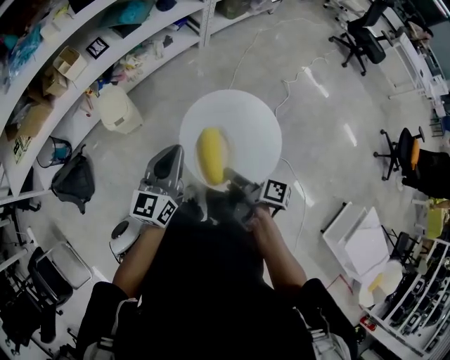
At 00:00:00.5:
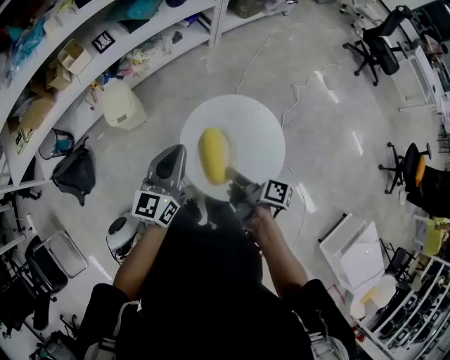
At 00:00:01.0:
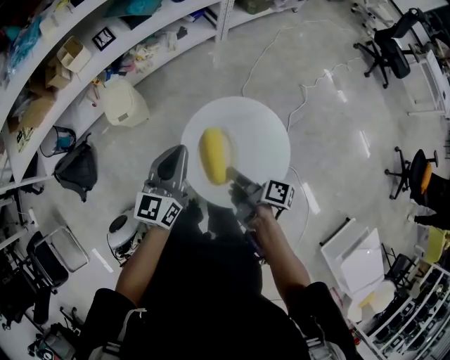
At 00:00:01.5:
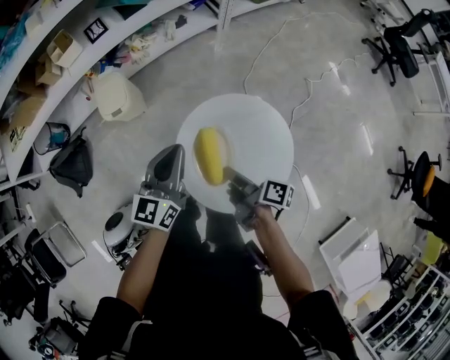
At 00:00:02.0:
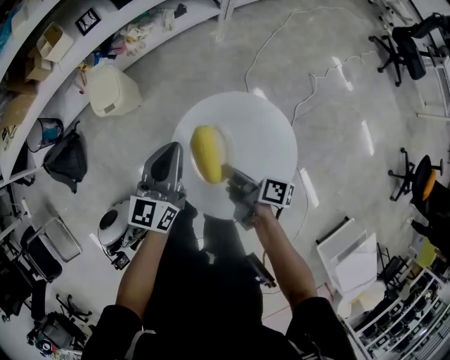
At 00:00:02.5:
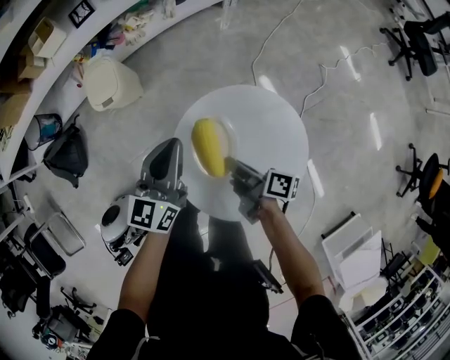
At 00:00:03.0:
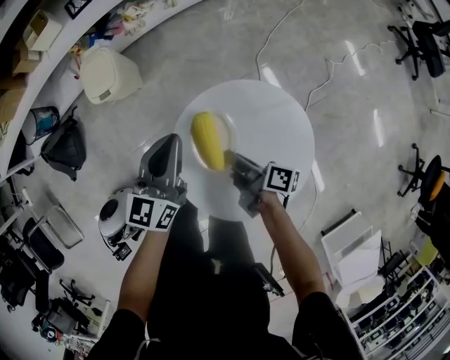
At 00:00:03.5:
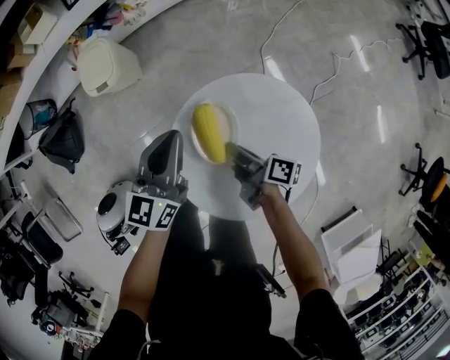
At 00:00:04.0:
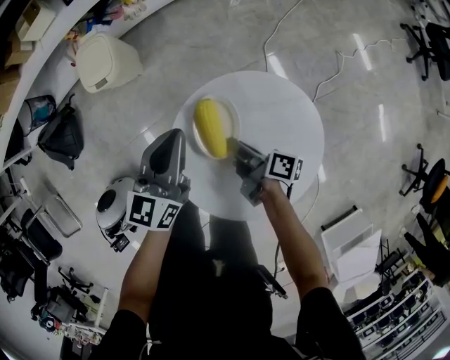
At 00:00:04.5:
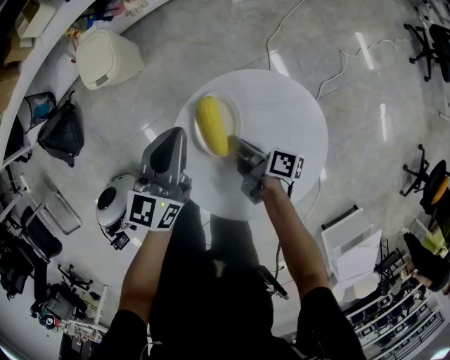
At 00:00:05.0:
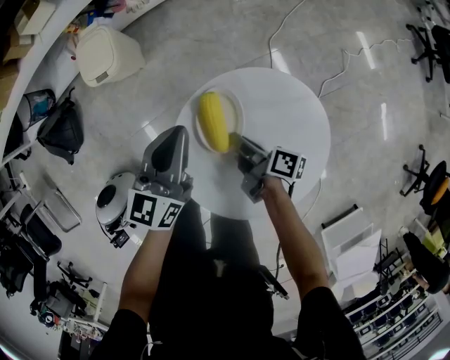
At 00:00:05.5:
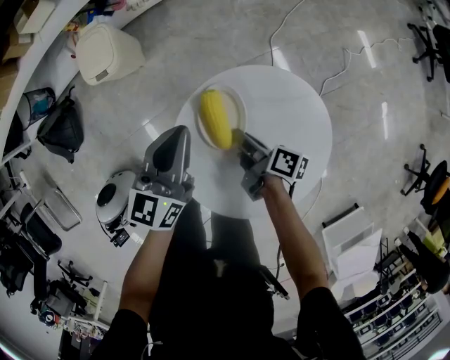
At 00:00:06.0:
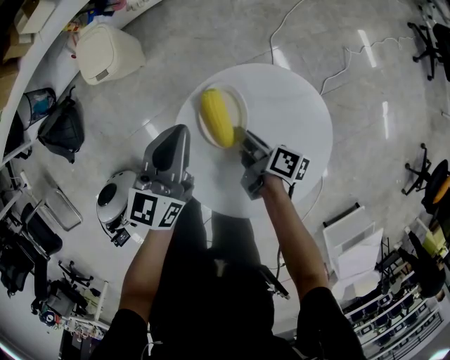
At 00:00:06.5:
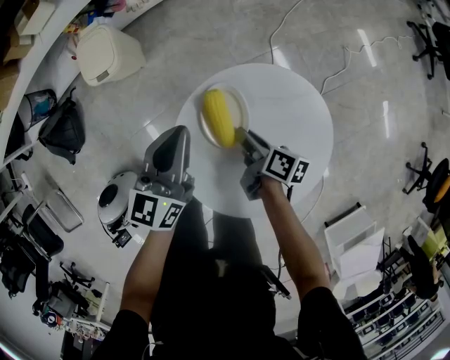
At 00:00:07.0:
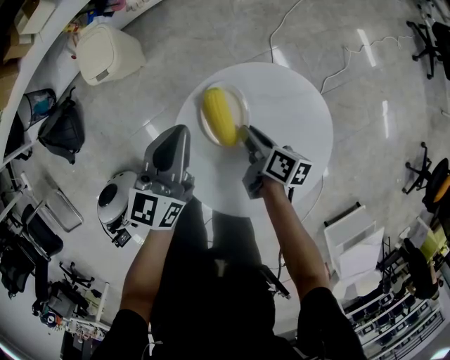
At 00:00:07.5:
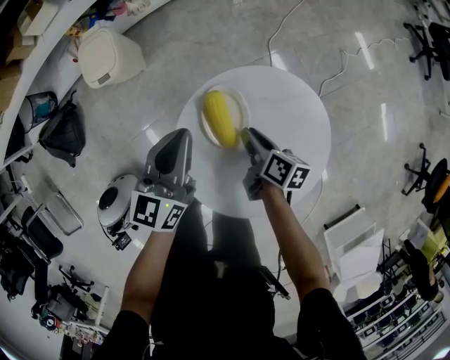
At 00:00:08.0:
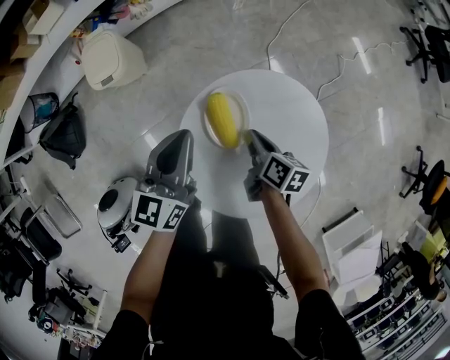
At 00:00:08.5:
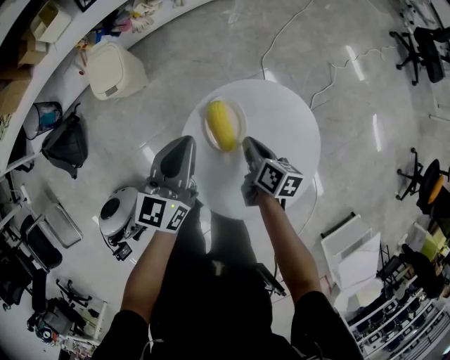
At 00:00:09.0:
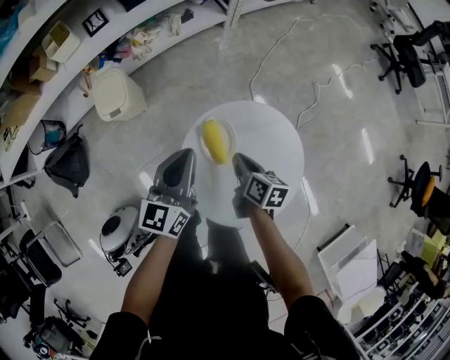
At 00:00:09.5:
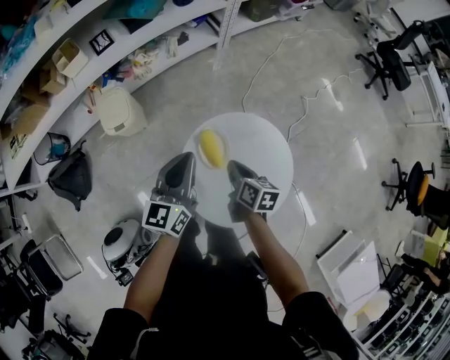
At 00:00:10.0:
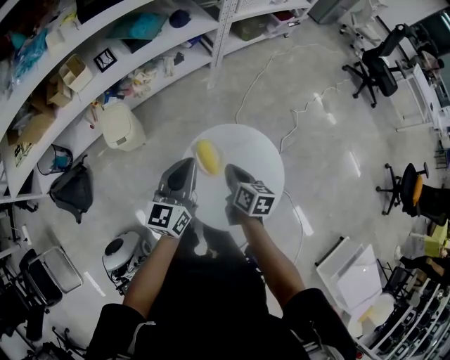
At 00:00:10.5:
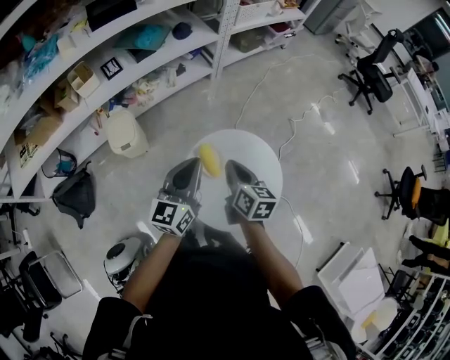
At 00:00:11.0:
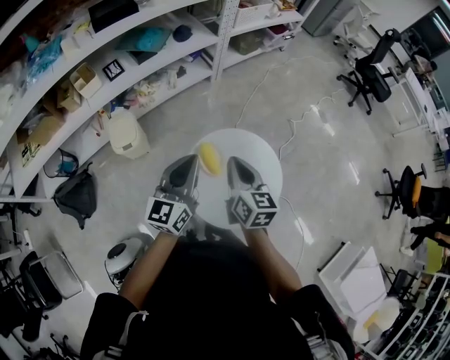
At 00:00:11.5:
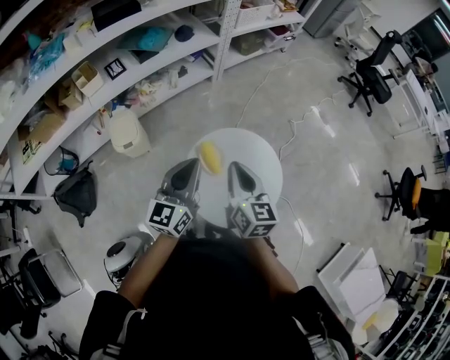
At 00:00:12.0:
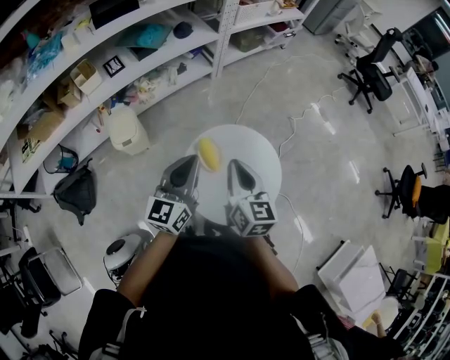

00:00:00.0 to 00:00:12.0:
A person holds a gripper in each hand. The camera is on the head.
00:00:00.0 to 00:00:02.0: The left gripper moves some 20 cm.
00:00:02.0 to 00:00:04.0: The left gripper travels downward by some 10 cm.
00:00:08.0 to 00:00:10.0: The left gripper goes roughly 15 cm upward.
00:00:10.0 to 00:00:12.0: The left gripper goes some 5 cm upward.

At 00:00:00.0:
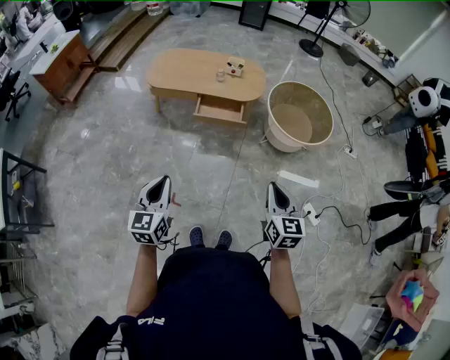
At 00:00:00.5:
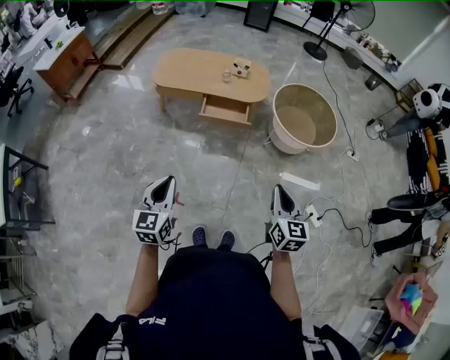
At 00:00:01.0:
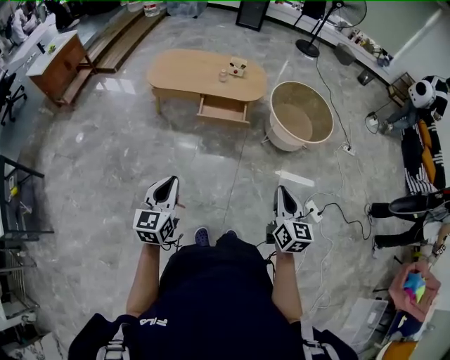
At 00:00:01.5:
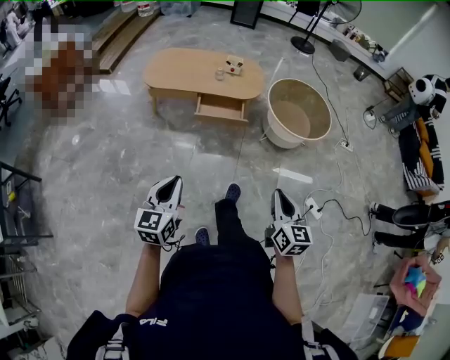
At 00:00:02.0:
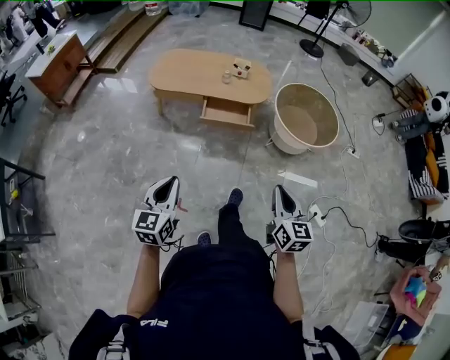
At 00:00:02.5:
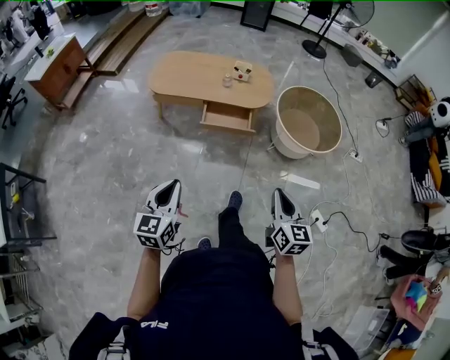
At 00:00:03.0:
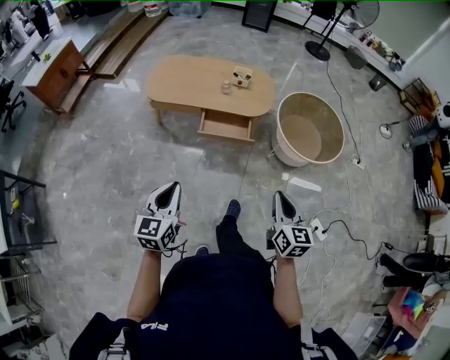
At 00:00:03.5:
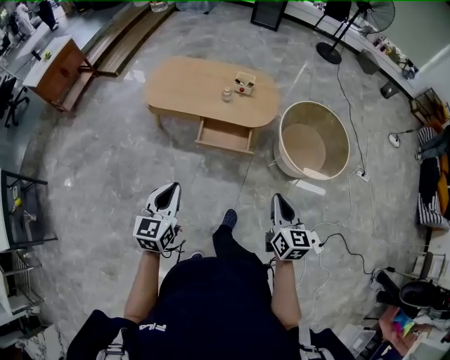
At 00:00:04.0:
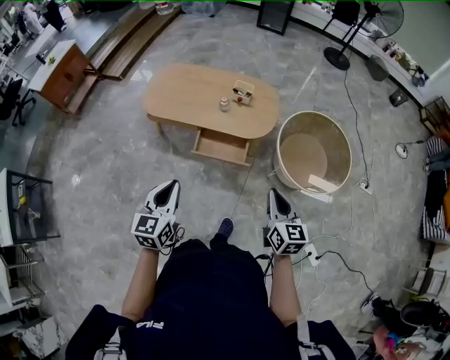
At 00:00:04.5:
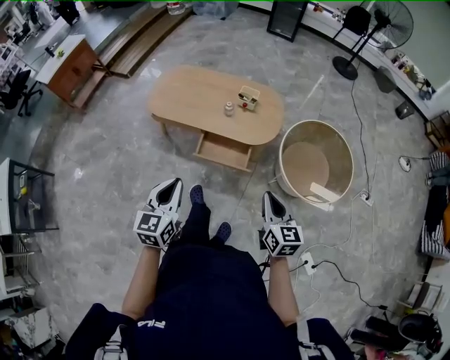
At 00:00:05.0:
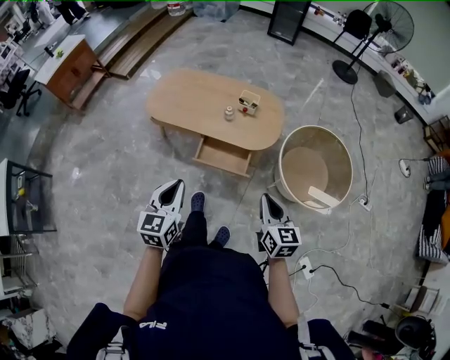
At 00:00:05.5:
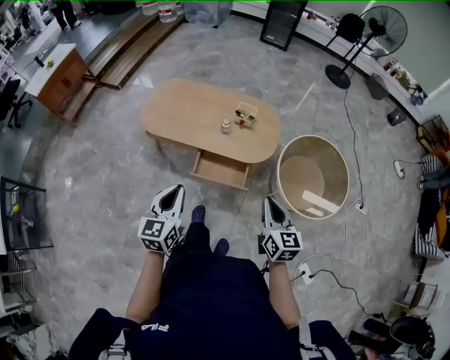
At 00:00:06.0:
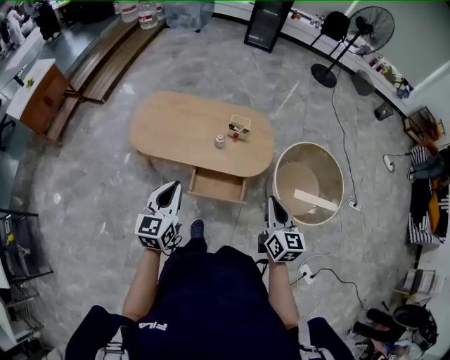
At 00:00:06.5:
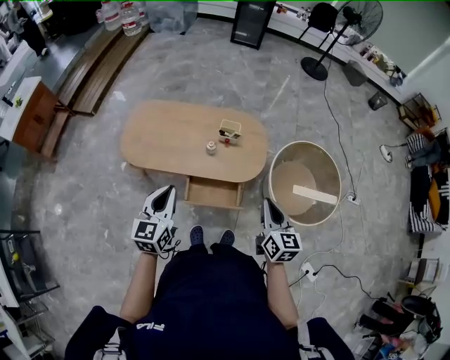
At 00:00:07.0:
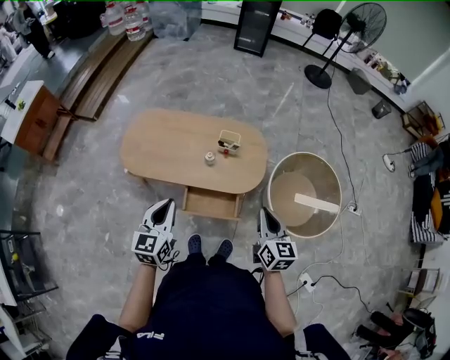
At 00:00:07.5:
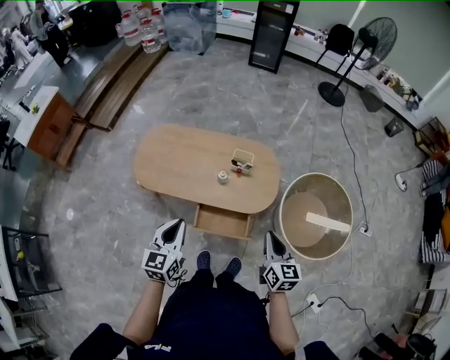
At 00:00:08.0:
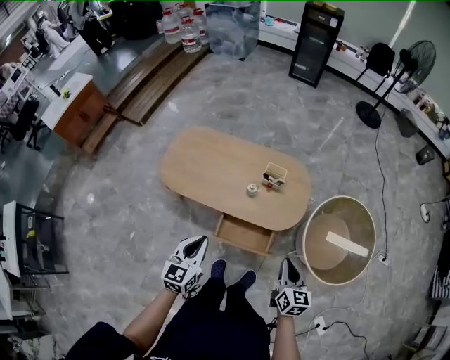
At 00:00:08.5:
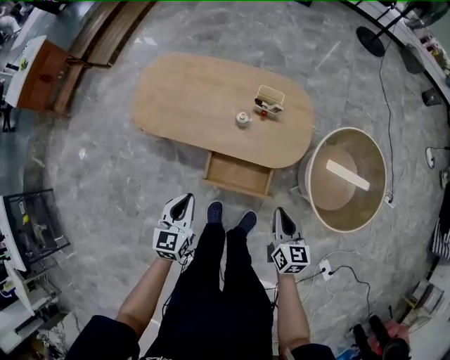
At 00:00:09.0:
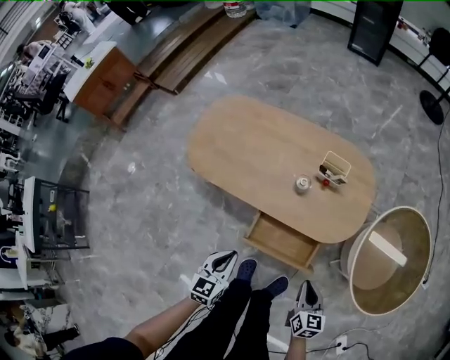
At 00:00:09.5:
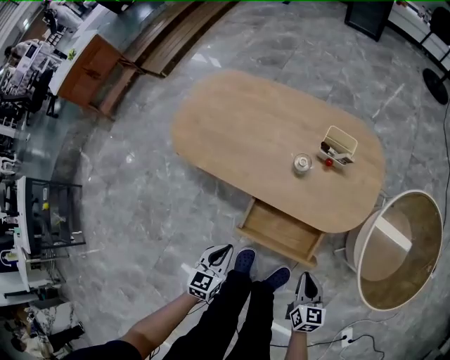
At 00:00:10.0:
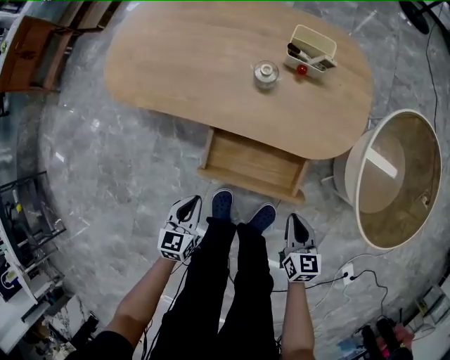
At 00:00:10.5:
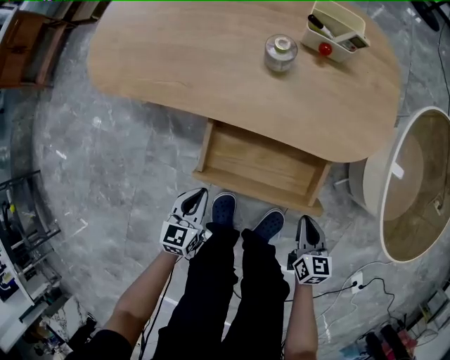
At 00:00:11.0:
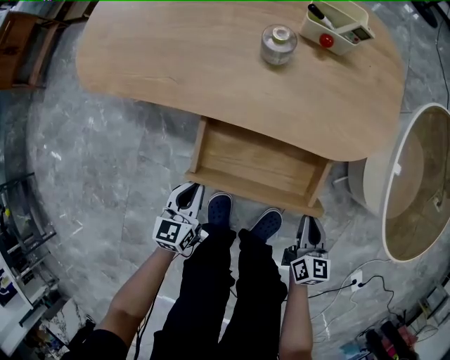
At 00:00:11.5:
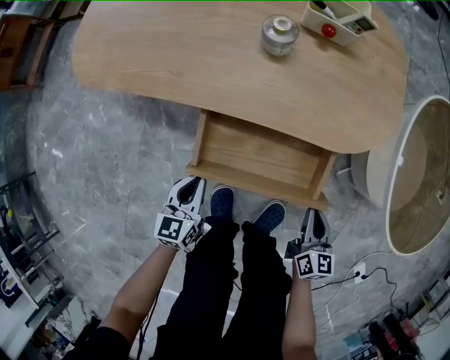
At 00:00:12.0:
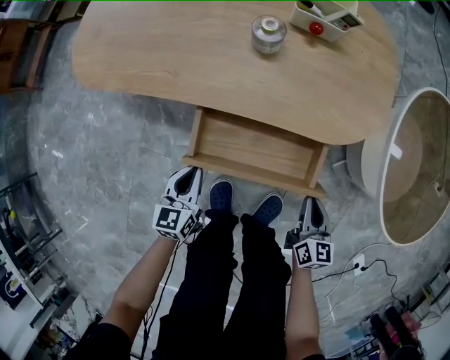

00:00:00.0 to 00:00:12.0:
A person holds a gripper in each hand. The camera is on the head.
00:00:00.0 to 00:00:02.0: The grippers both shift to the left by roughly 5 cm.
00:00:02.0 to 00:00:04.0: The right gripper heads forward, covering about 35 cm. Meanwhile the left gripper shifts approximately 35 cm forward and to the right.
00:00:04.0 to 00:00:06.0: The left gripper moves forward, approximately 25 cm; the right gripper is displaced forward and to the left by some 20 cm.
00:00:06.0 to 00:00:08.0: The grippers both shift downward and forward by some 10 cm.
00:00:08.0 to 00:00:10.0: Both grippers travel together downward, about 50 cm.
00:00:10.0 to 00:00:12.0: The right gripper is displaced downward by roughly 10 cm. Meanwhile the left gripper travels downward and forward by roughly 10 cm.

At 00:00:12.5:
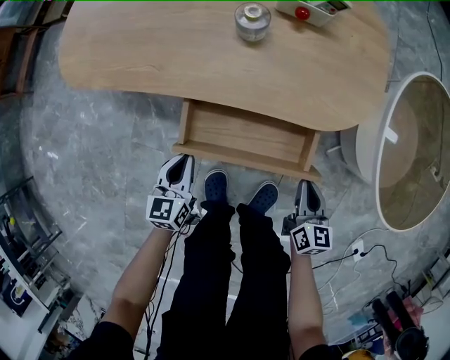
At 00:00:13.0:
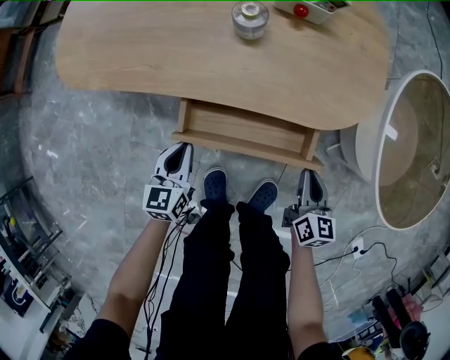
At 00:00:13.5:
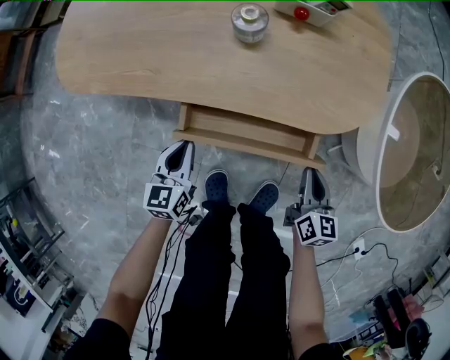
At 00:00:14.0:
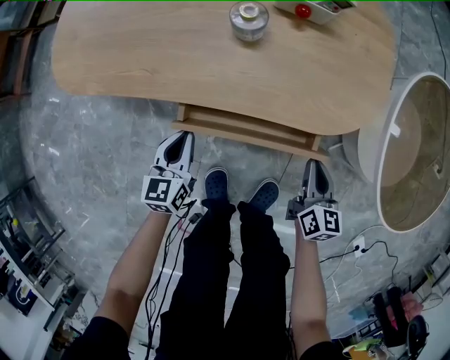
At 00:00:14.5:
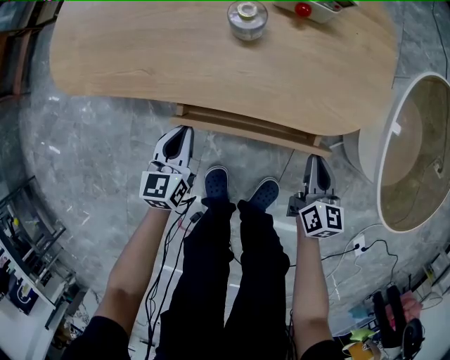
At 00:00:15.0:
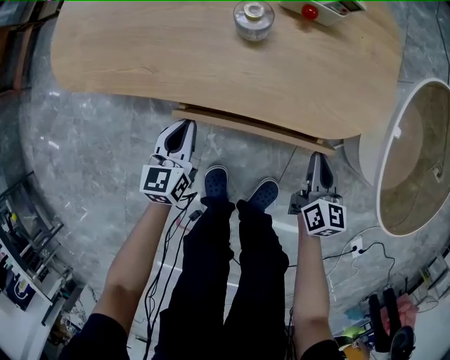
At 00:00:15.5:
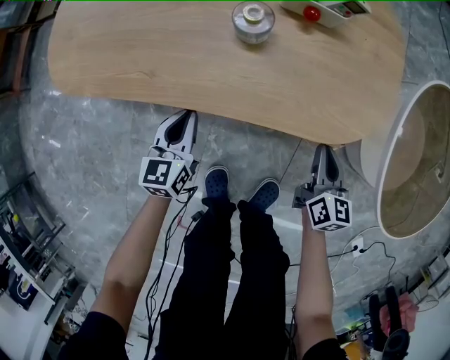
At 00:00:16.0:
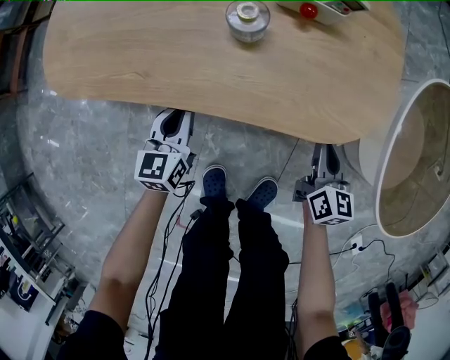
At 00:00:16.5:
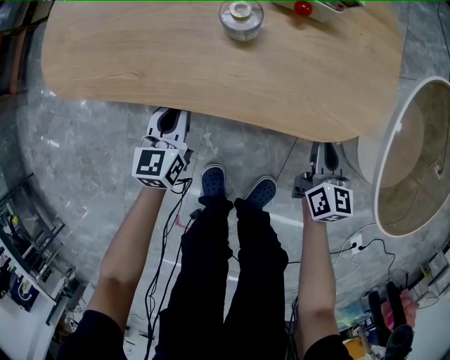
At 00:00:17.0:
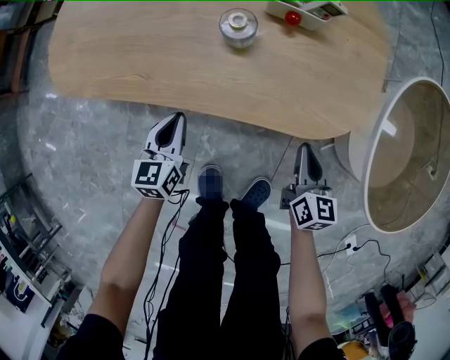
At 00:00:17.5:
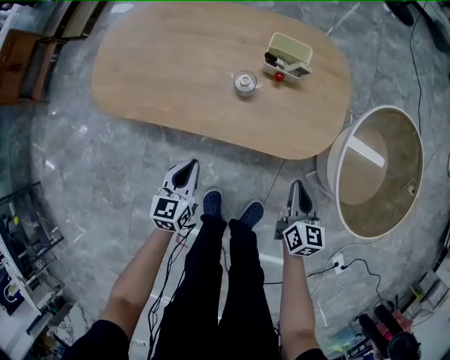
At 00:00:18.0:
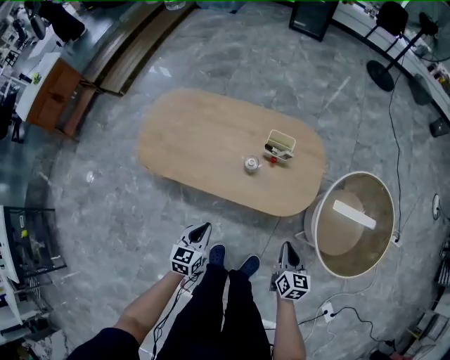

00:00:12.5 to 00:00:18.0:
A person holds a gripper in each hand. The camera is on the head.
00:00:12.5 to 00:00:14.5: Both grippers travel together forward, roughly 10 cm.
00:00:14.5 to 00:00:16.0: The grippers both shift forward by some 5 cm.
00:00:16.0 to 00:00:18.0: Both grippers travel together upward, roughly 30 cm.
